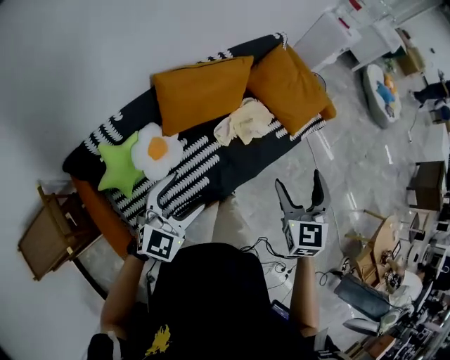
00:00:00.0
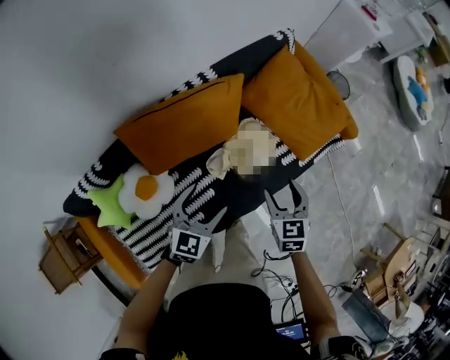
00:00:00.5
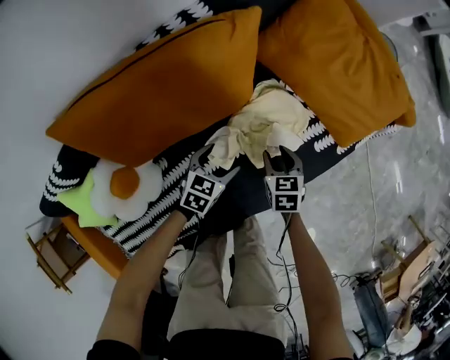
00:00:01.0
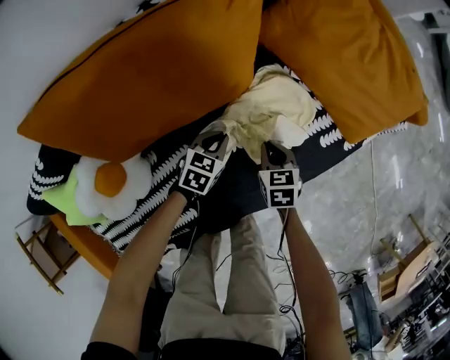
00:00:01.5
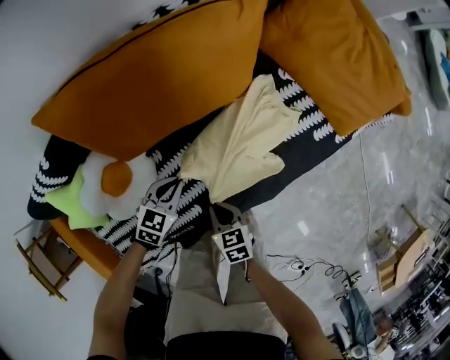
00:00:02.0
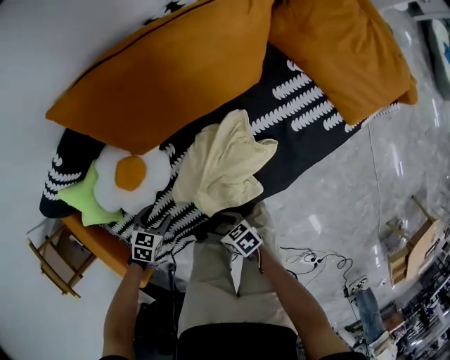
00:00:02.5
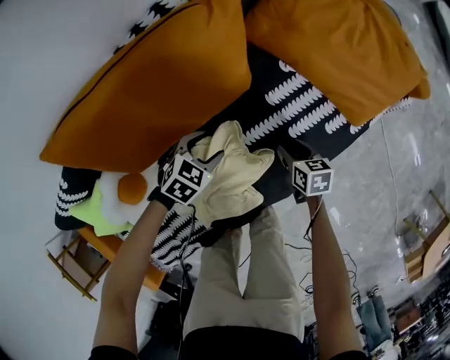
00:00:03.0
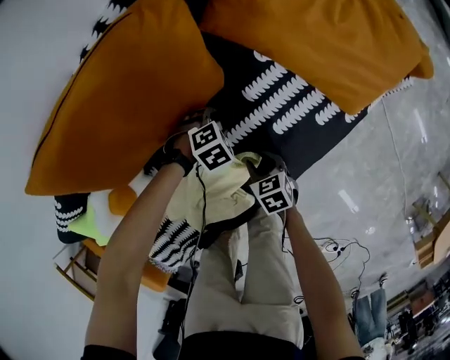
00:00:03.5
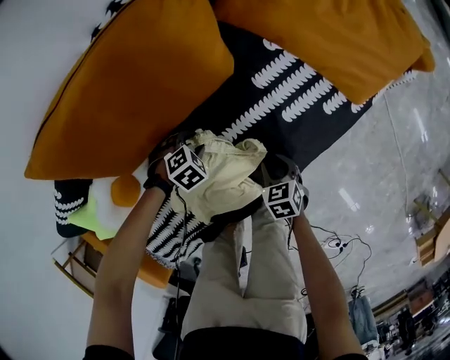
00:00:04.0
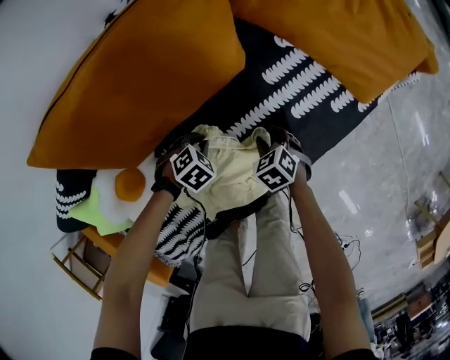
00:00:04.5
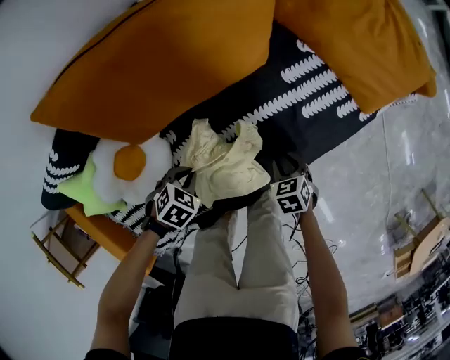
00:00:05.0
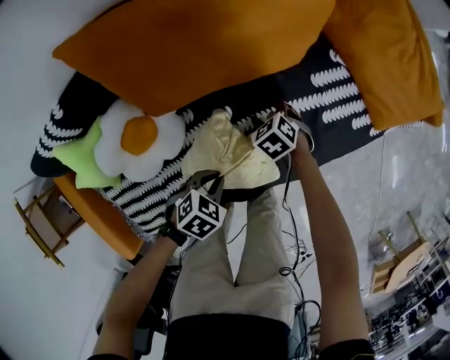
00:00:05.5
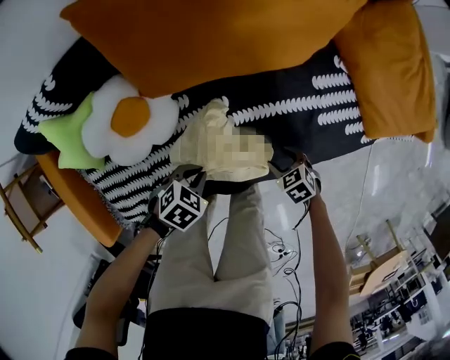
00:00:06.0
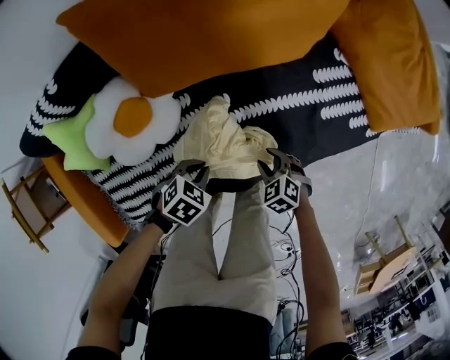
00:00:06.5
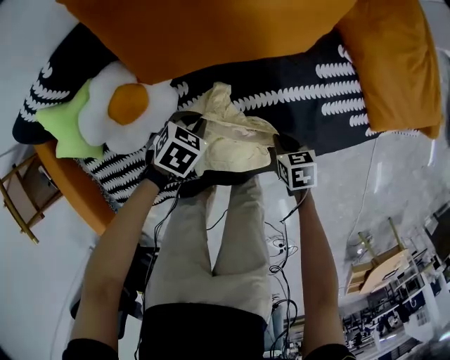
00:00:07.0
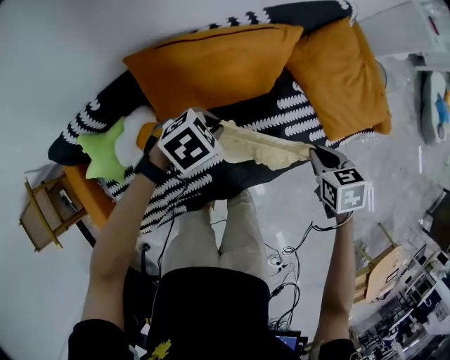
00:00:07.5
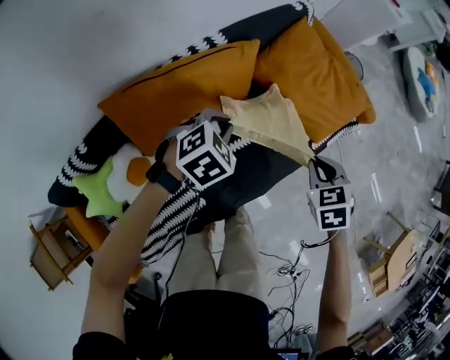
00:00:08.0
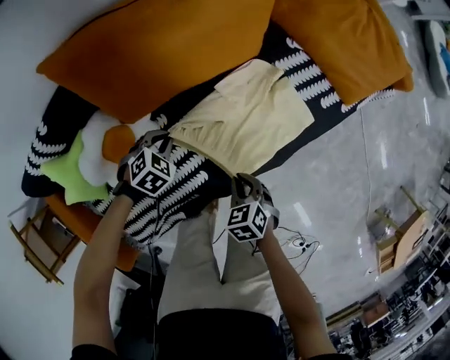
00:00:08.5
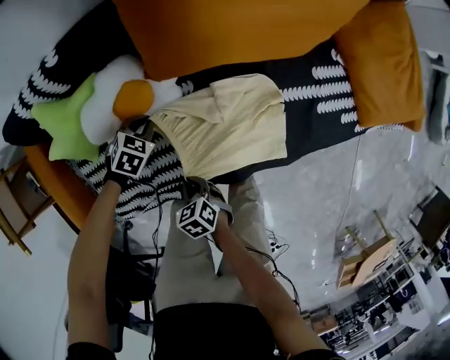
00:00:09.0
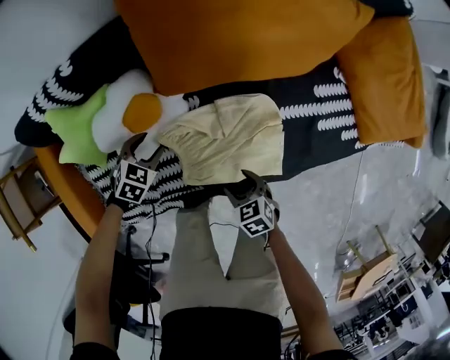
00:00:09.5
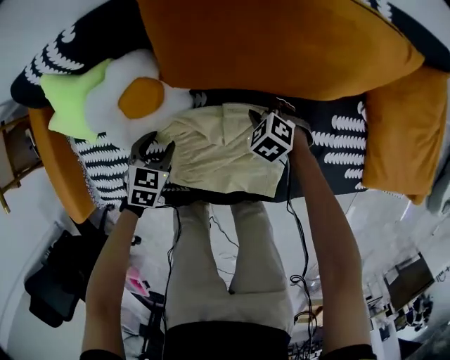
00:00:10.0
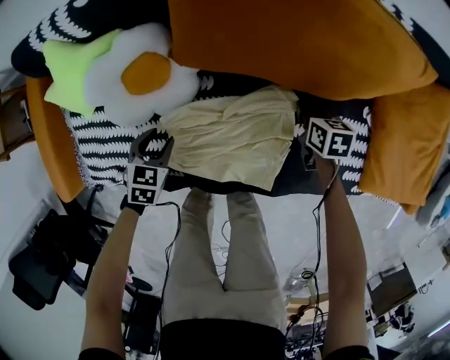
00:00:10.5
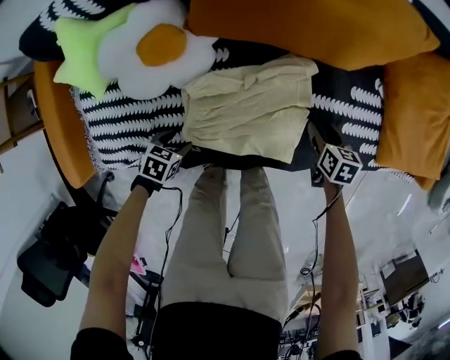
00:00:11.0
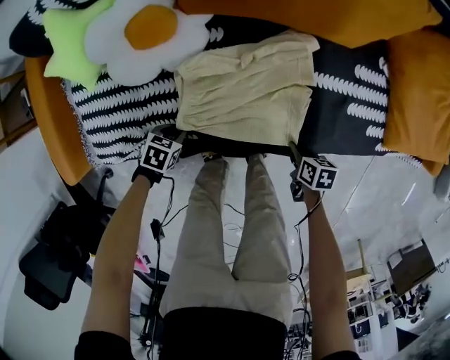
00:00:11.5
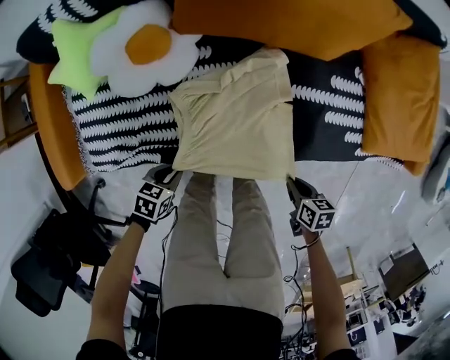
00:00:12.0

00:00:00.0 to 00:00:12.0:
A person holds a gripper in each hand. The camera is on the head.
00:00:00.0 to 00:00:02.0: The right gripper shifts roughly 60 cm downward, turns by approximately 50 degrees, and closes its fingers; the left gripper is displaced downward and forward by some 60 cm, angles its fingers downward, by about 30 degrees, and closes up.
00:00:02.0 to 00:00:04.0: The right gripper shifts by about 20 cm; the left gripper travels downward by approximately 15 cm, tips its fingers downward by some 30 degrees, and opens its fingers.
00:00:04.0 to 00:00:06.0: The right gripper changes its angle by about 40 degrees. Meanwhile the left gripper ends up roughly 25 cm from where it was, swivels roughly 40 degrees, and closes its fingers.
00:00:06.0 to 00:00:08.0: The grippers both shift upward by some 35 cm. The right gripper rotates roughly 40 degrees, and closes up; the left gripper swivels approximately 40 degrees.
00:00:08.0 to 00:00:10.0: The left gripper changes place by approximately 50 cm, rolls counterclockwise, seen from behind, by approximately 50 degrees, and opens. The right gripper travels downward by roughly 40 cm, and rotates around the line of its fingers by approximately 60 degrees, counterclockwise from behind.
00:00:10.0 to 00:00:12.0: The left gripper travels downward and back again, roughly 10 cm each way, and turns by some 30 degrees. The right gripper moves some 40 cm, and twists some 70 degrees clockwise, seen from behind.

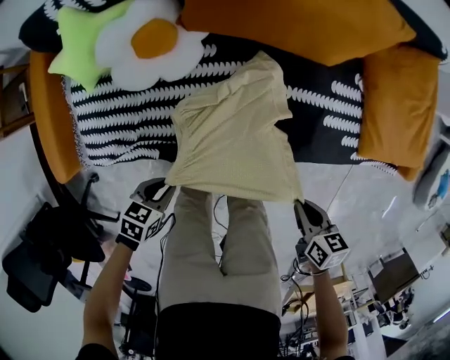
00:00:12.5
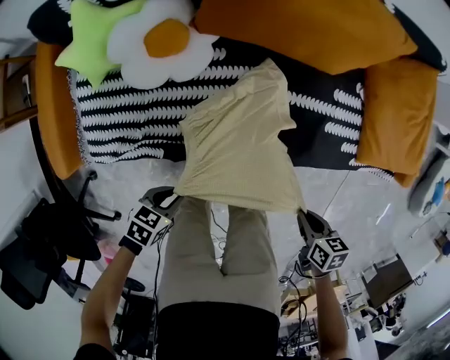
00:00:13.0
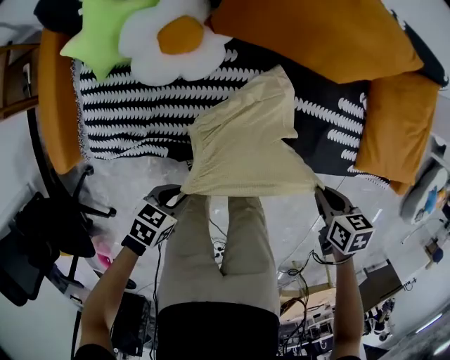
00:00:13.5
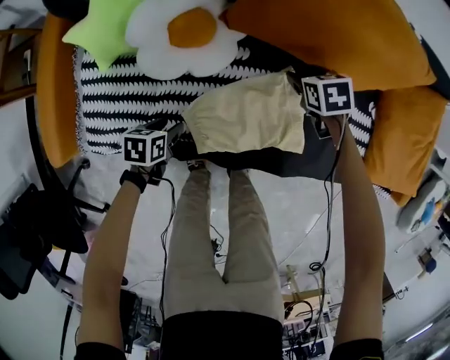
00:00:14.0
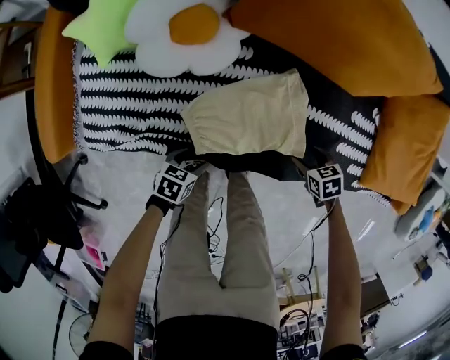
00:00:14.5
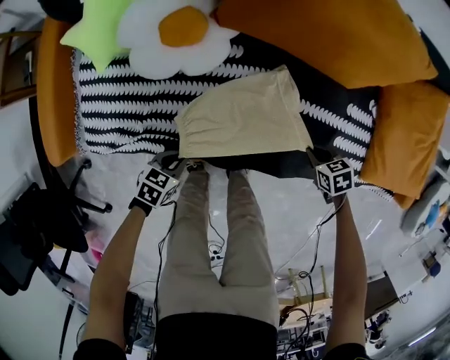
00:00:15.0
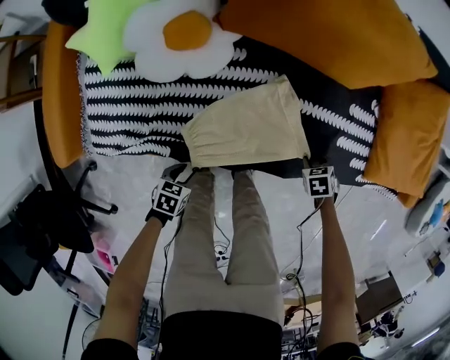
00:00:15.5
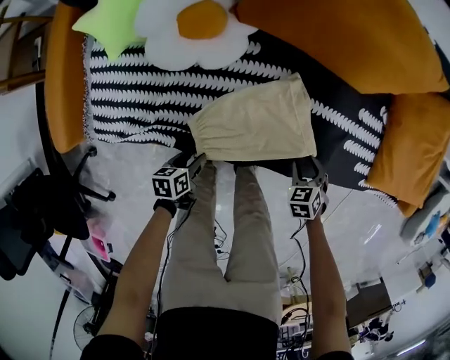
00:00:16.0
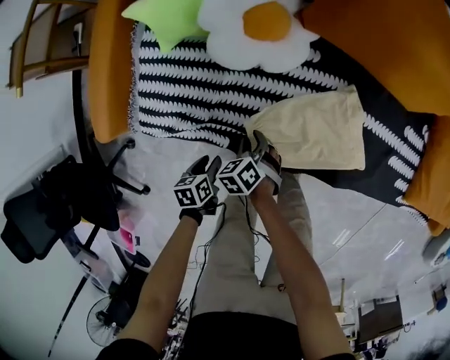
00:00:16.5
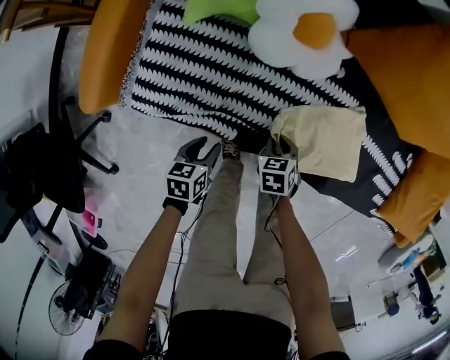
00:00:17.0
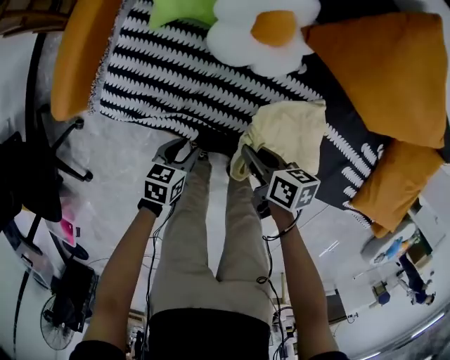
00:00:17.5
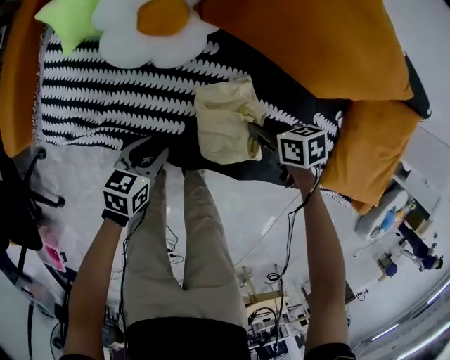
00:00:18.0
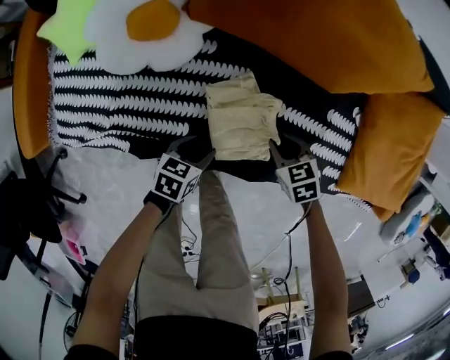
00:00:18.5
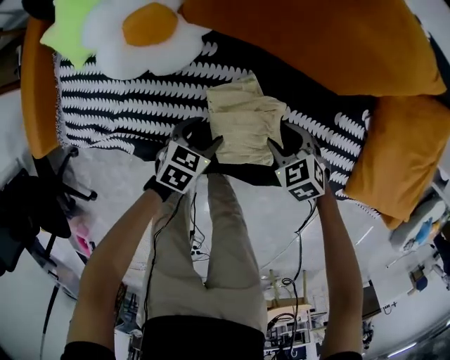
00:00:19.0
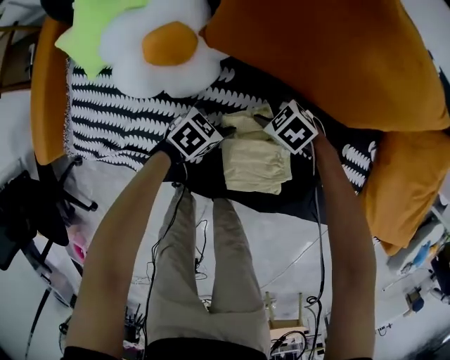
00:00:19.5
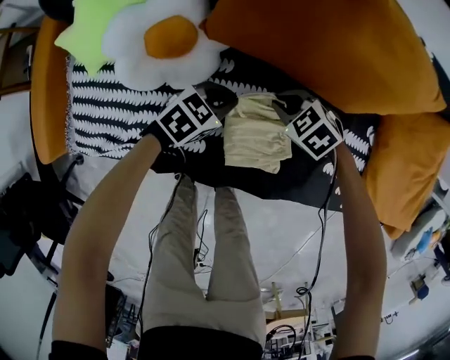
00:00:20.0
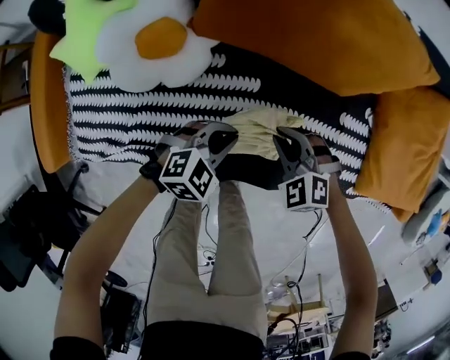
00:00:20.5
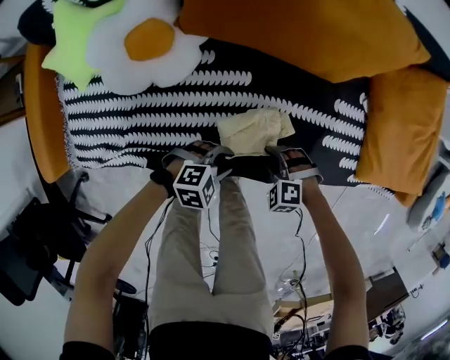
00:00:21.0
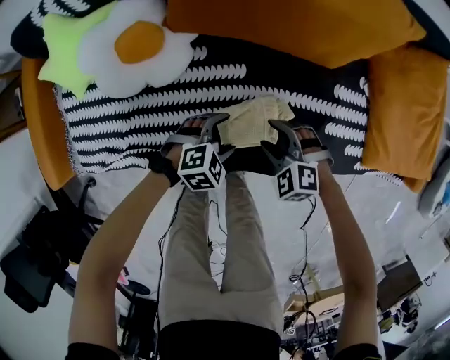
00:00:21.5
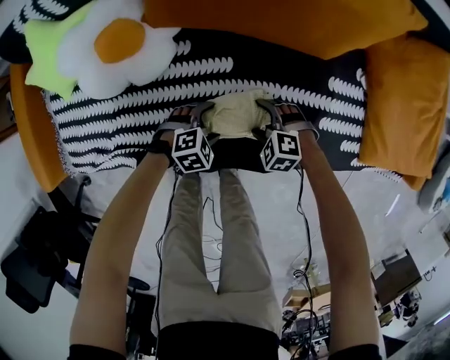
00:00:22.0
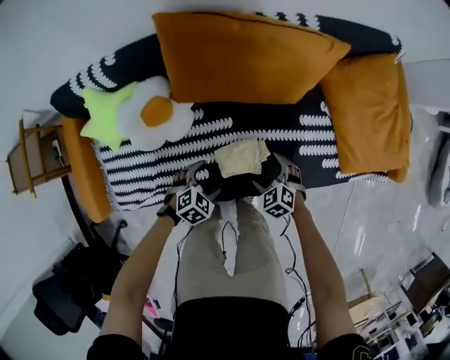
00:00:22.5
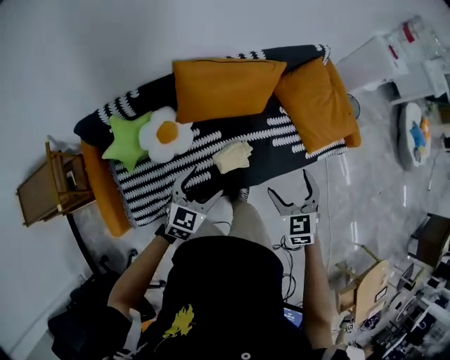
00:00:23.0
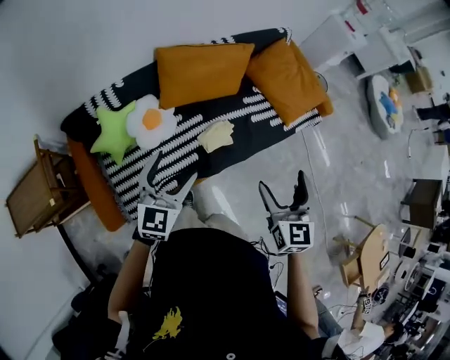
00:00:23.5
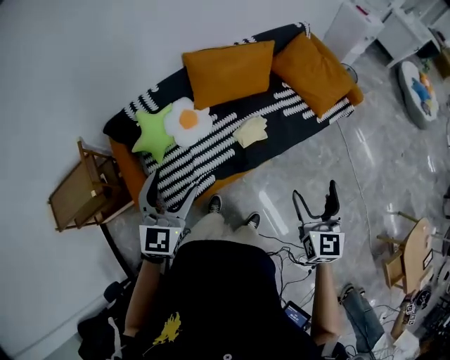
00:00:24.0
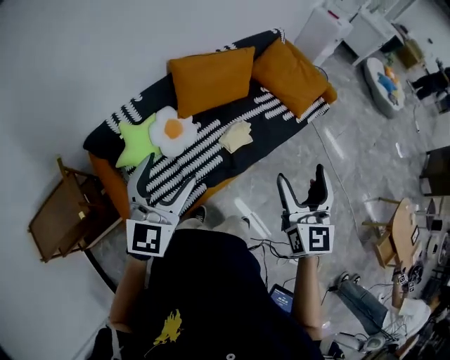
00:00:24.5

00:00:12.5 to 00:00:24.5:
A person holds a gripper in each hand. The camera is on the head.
00:00:12.5 to 00:00:14.5: Both grippers travel together downward, roughly 20 cm. The left gripper opens its fingers, while the right gripper swivels about 40 degrees, and opens up.
00:00:14.5 to 00:00:16.5: The left gripper moves approximately 15 cm, turns by roughly 40 degrees, and closes and opens again. The right gripper changes place by roughly 35 cm, and rotates about 30 degrees.
00:00:16.5 to 00:00:18.5: The right gripper reaches approximately 10 cm upward, then returns. Meanwhile the left gripper changes place by about 30 cm, and changes its angle by some 40 degrees.
00:00:18.5 to 00:00:20.5: The right gripper twists about 40 degrees counterclockwise, seen from behind. Meanwhile the left gripper twists roughly 60 degrees clockwise, seen from behind, and closes its fingers.
00:00:20.5 to 00:00:22.5: The left gripper travels downward and back again, roughly 15 cm each way, and opens its fingers, while the right gripper swings up and down, roughly 20 cm each way, with 3 reversals, rotates about 30 degrees, and opens its fingers.
00:00:22.5 to 00:00:24.5: The two grippers go some 70 cm upward. The right gripper points its fingers approximately 50 degrees further upward. Meanwhile the left gripper points its fingers approximately 60 degrees further upward.

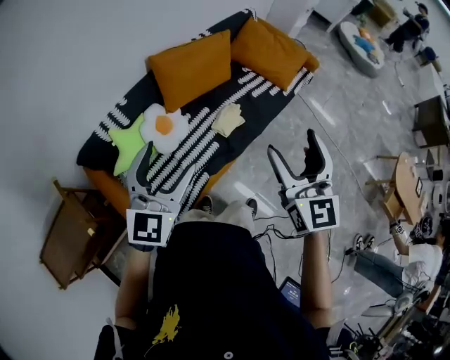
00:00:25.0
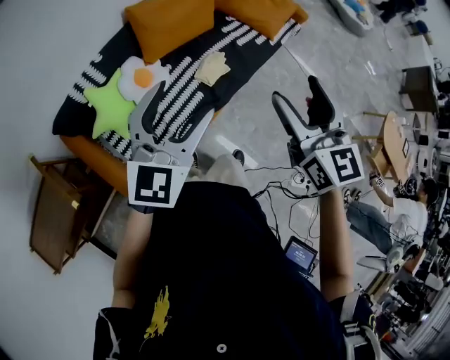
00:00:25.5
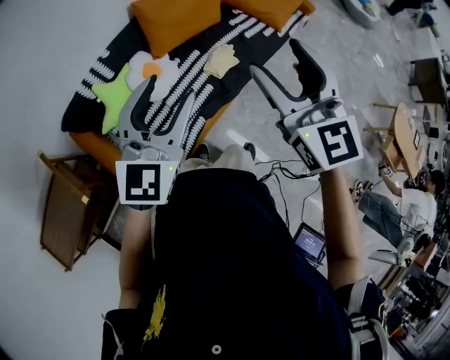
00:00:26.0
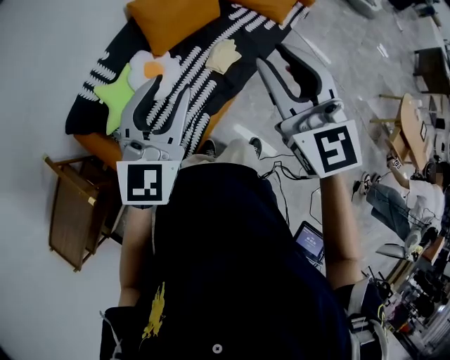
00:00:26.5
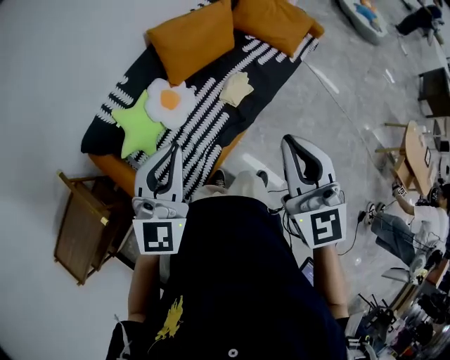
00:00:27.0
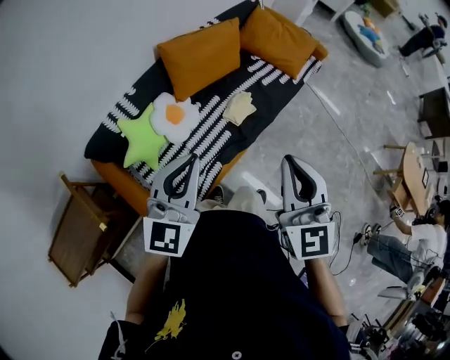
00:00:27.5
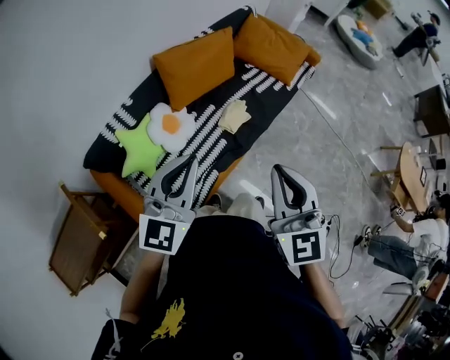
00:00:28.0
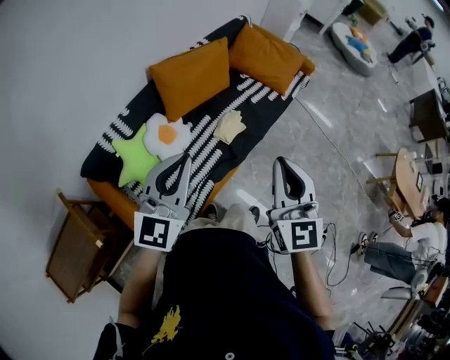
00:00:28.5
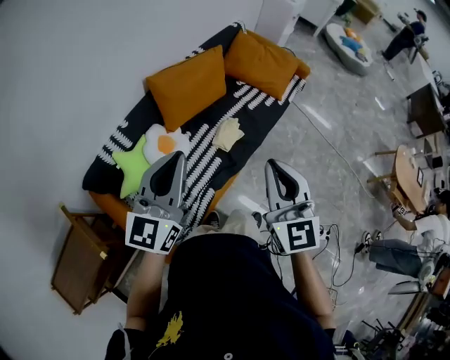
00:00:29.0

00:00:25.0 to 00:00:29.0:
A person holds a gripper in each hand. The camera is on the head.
00:00:25.0 to 00:00:27.0: The right gripper is displaced to the left and backward by some 10 cm, and closes its fingers. Meanwhile the left gripper ends up about 5 cm from where it was, and closes.
00:00:27.0 to 00:00:29.0: The left gripper travels forward and upward by roughly 10 cm, and turns by about 20 degrees.
